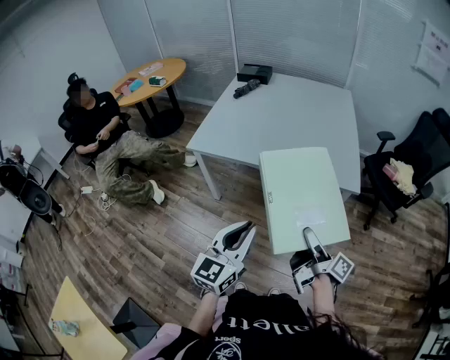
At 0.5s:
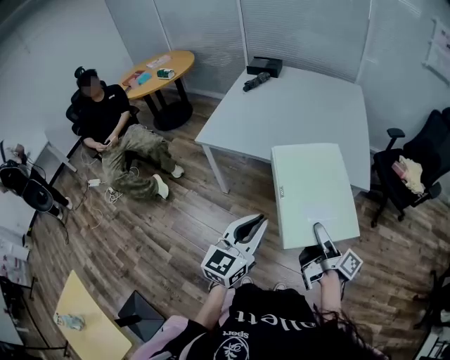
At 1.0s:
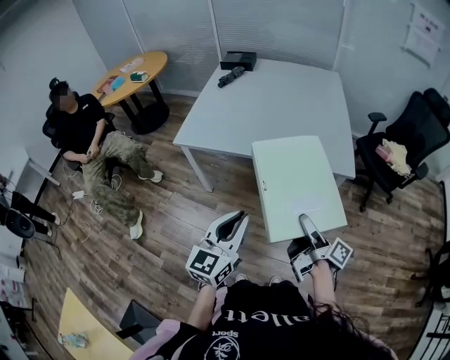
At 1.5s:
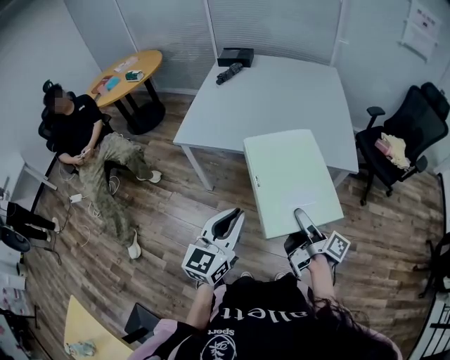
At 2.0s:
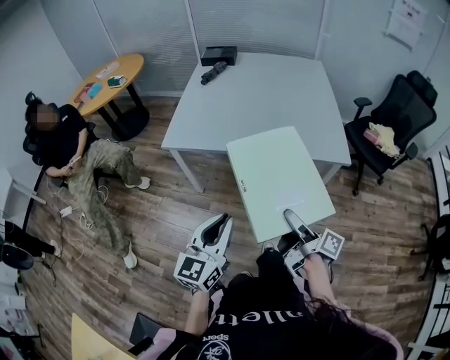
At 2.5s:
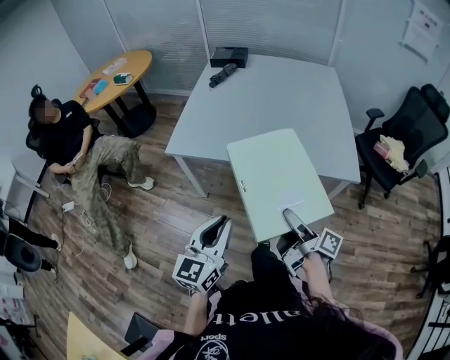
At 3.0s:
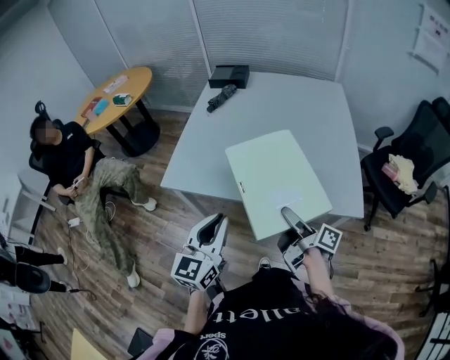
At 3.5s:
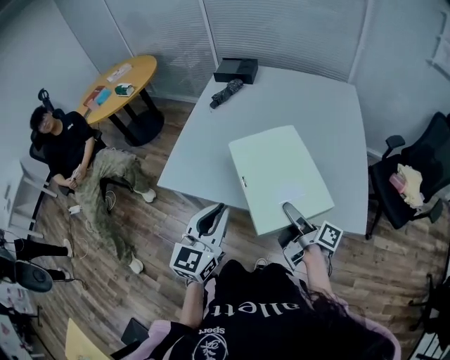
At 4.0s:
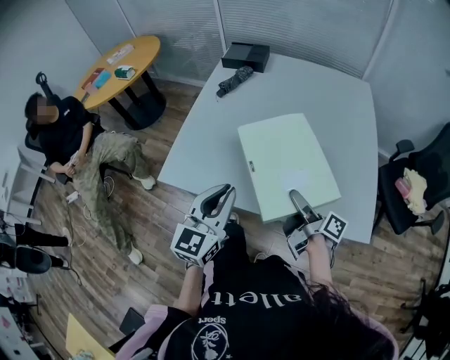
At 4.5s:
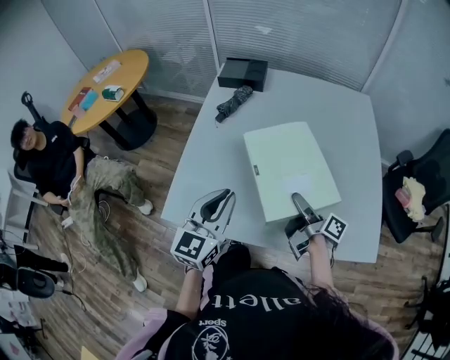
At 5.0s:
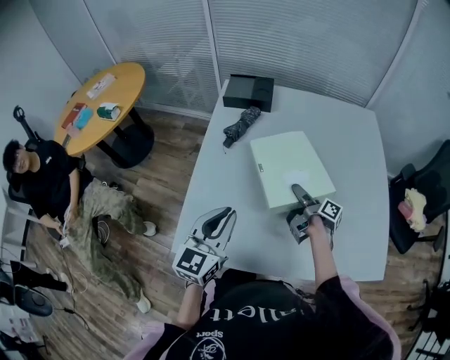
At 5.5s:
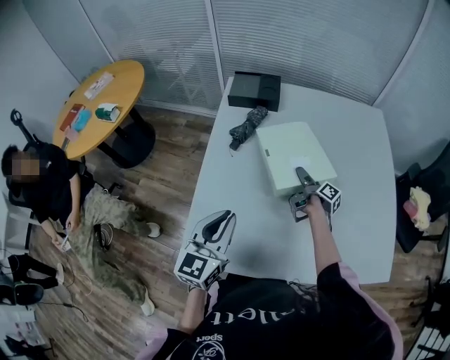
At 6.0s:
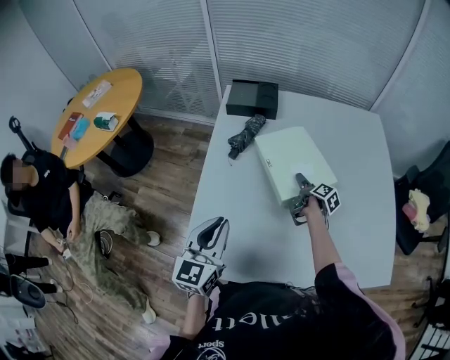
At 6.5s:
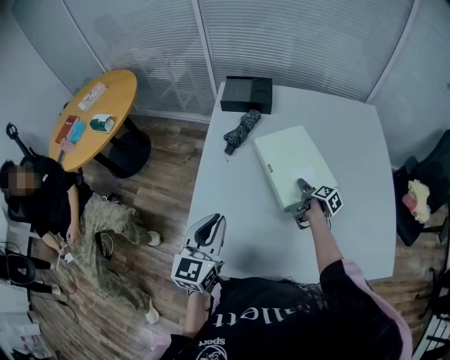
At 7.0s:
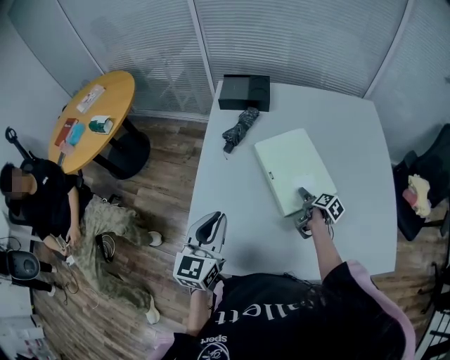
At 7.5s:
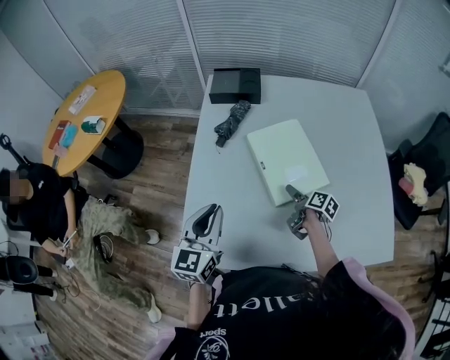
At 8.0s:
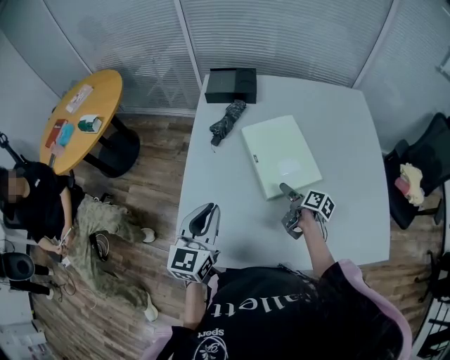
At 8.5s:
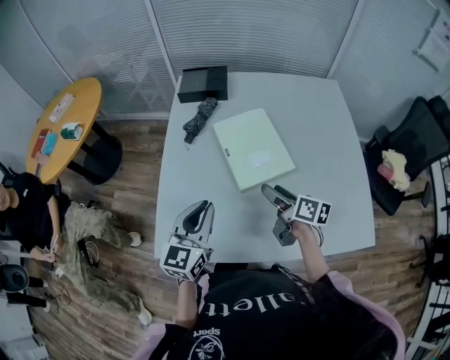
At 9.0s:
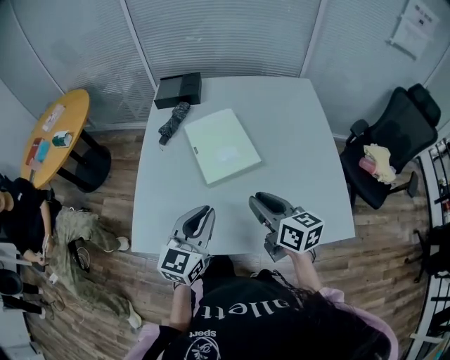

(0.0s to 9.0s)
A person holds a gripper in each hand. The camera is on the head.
0.0s - 2.0s: Both grippers move to the left, about 10 cm.
2.0s - 4.5s: The two grippers travel together, forward, about 50 cm.
4.5s - 7.0s: The left gripper heads to the left and forward, covering roughly 15 cm; the right gripper travels downward and forward by roughly 25 cm, and tips its fingers downward by roughly 40 degrees.
7.0s - 9.0s: The left gripper heads to the right and backward, covering approximately 20 cm. The right gripper heads upward and backward, covering some 30 cm, tilts its fingers about 30 degrees upward, and closes its fingers.

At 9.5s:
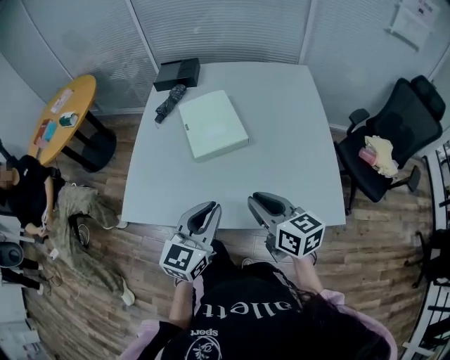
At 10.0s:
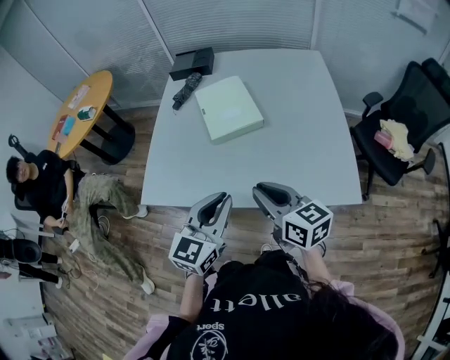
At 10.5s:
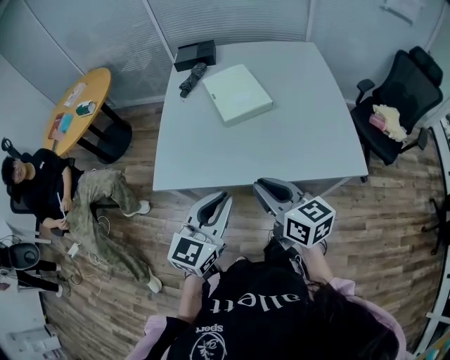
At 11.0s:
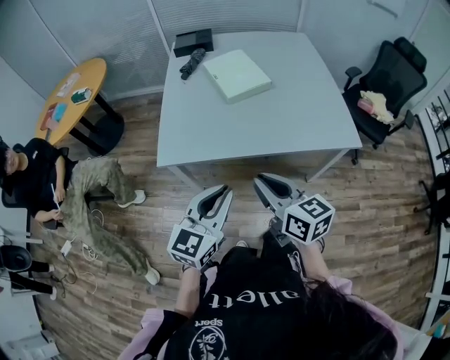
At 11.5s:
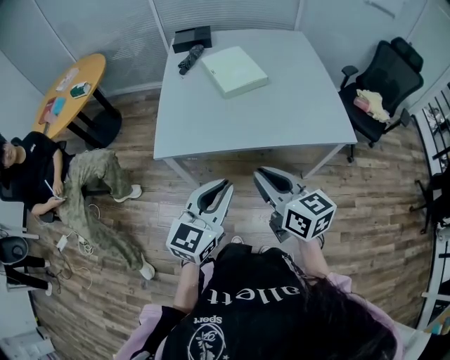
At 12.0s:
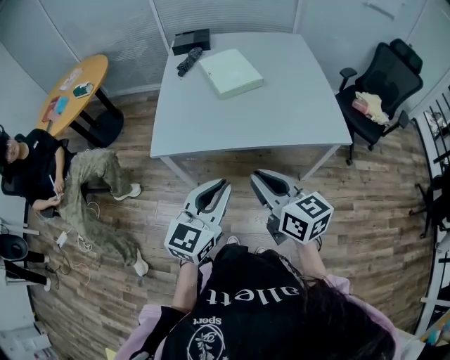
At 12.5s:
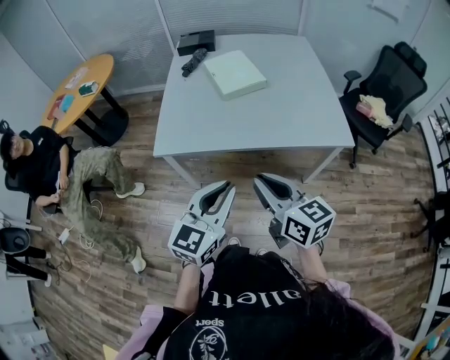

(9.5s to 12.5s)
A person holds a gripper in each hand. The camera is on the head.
9.5s - 11.0s: The two grippers go roughly 30 cm backward and to the left.
11.0s - 12.5s: The left gripper heads to the right, covering about 5 cm, while the right gripper heads backward, covering some 5 cm.

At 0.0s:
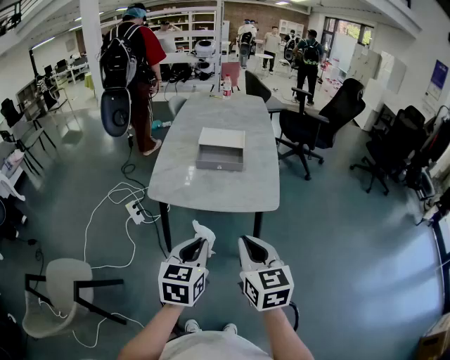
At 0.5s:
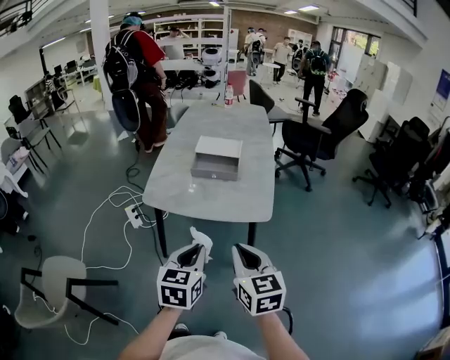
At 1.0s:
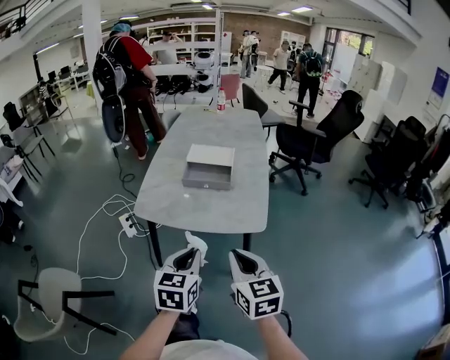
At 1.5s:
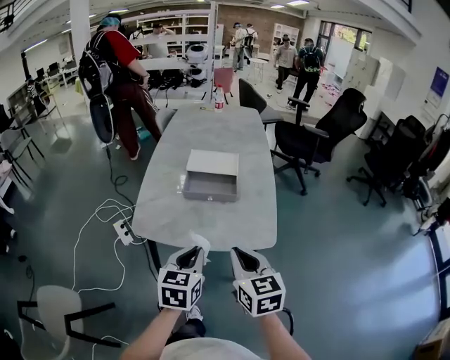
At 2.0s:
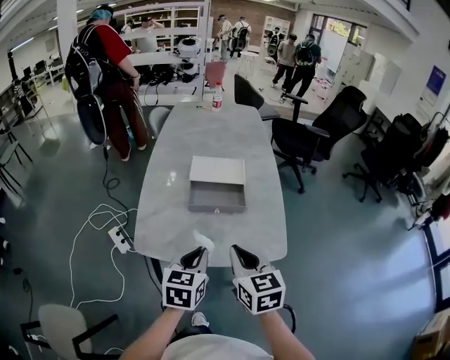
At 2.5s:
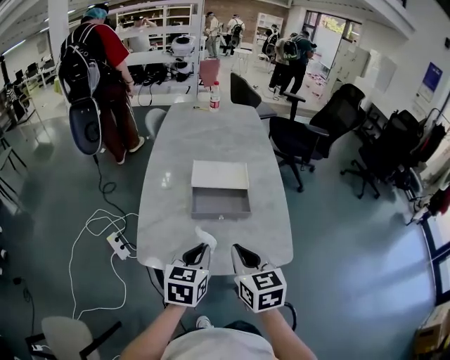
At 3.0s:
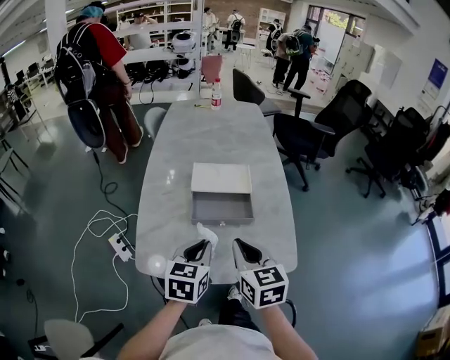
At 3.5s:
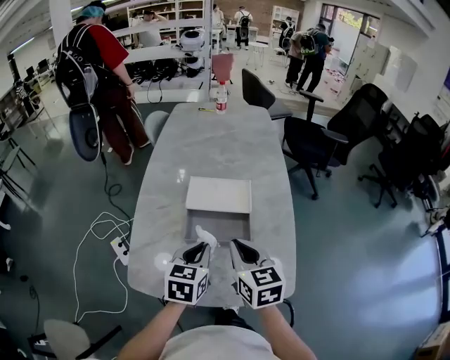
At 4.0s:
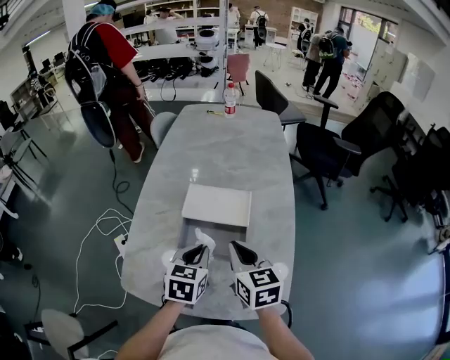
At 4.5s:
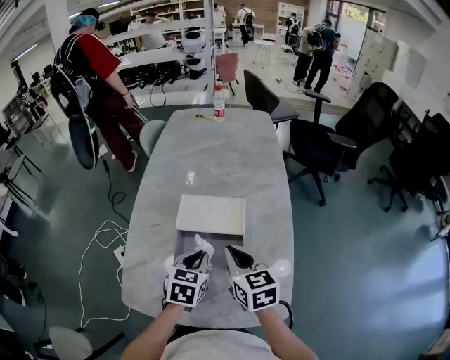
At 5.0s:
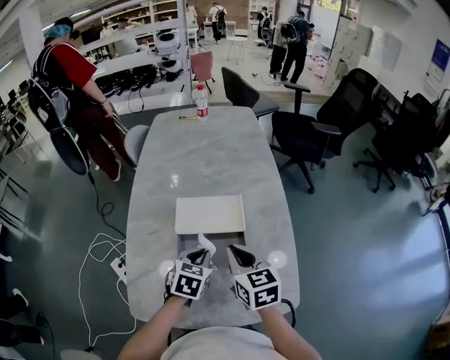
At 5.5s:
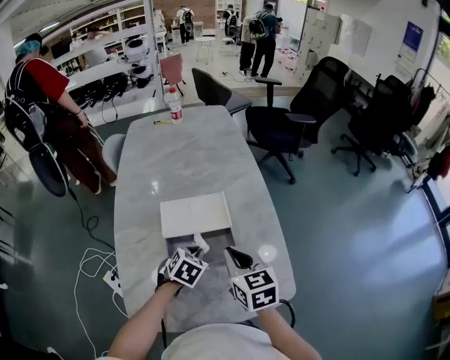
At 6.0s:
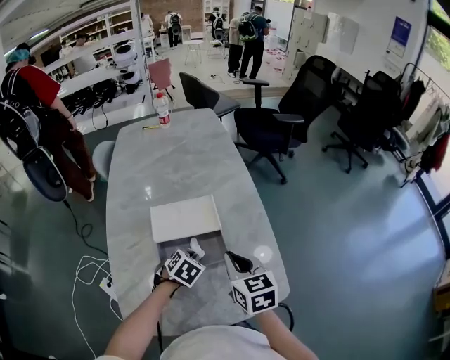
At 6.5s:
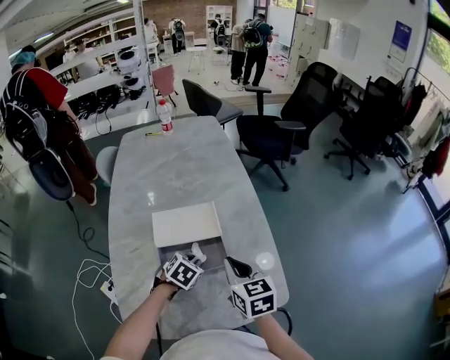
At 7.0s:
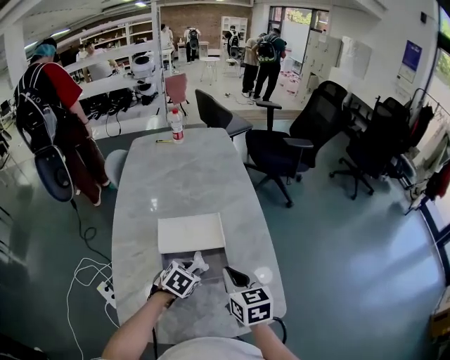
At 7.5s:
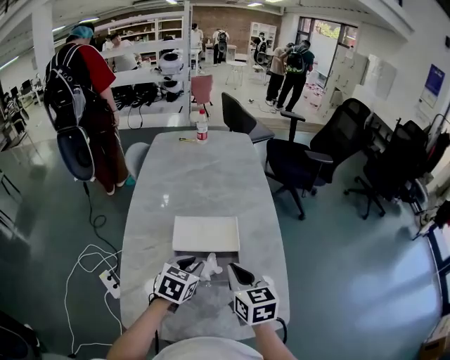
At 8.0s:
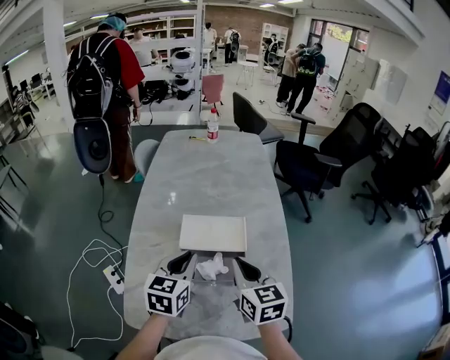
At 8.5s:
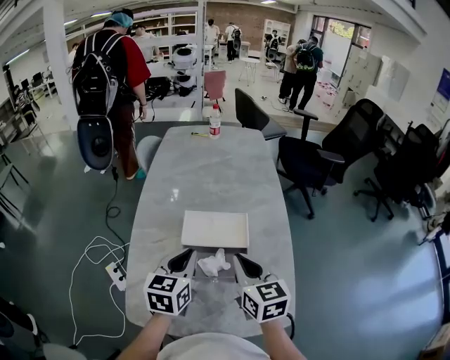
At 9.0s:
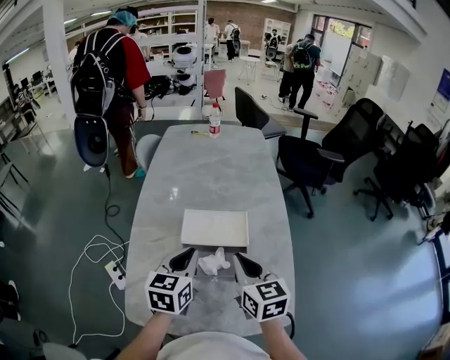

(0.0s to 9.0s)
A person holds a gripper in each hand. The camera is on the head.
0.0s - 2.0s: Both grippers travel together forward, some 25 cm.
2.0s - 4.5s: The grippers both shift forward by roughly 25 cm.
4.5s - 7.0s: The left gripper travels downward by approximately 5 cm, and changes its angle by approximately 40 degrees.
7.0s - 9.0s: The left gripper travels upward and to the left by about 15 cm, and points its fingers roughly 30 degrees further upward; the right gripper heads upward, covering approximately 5 cm.

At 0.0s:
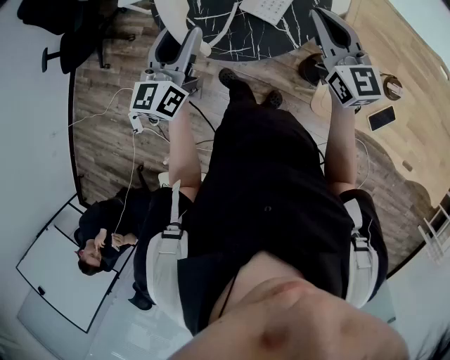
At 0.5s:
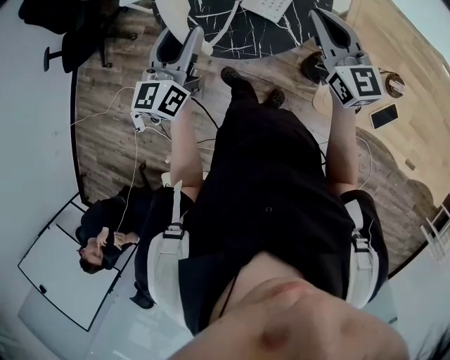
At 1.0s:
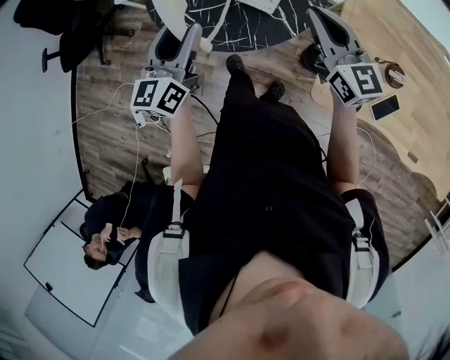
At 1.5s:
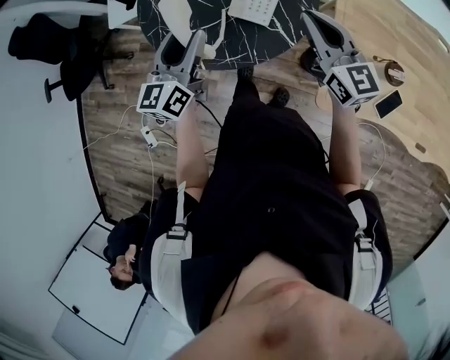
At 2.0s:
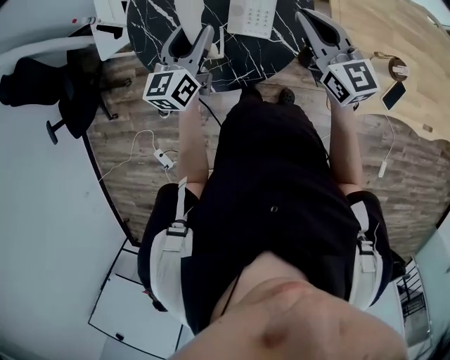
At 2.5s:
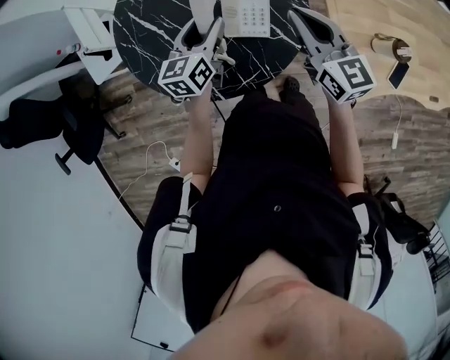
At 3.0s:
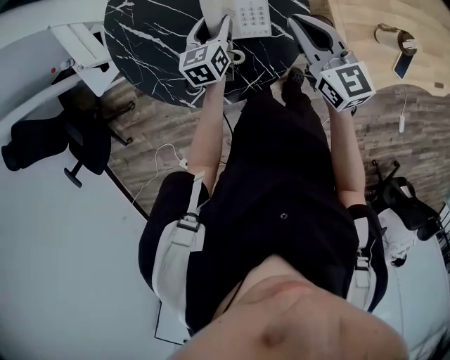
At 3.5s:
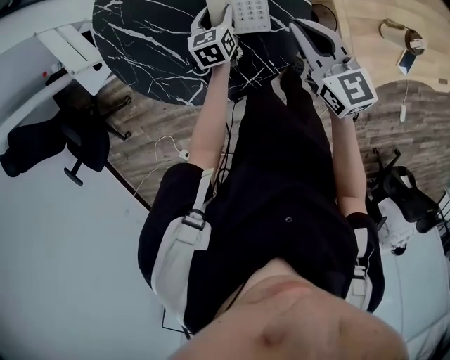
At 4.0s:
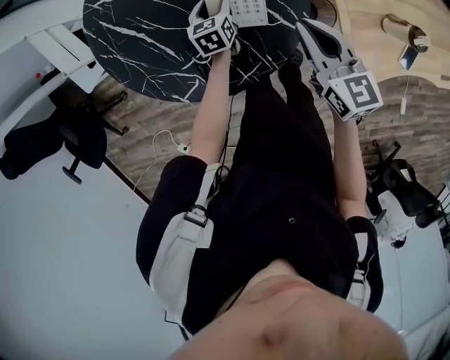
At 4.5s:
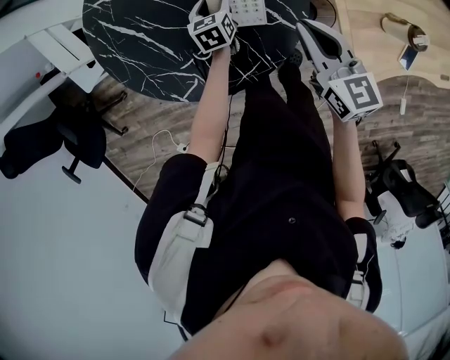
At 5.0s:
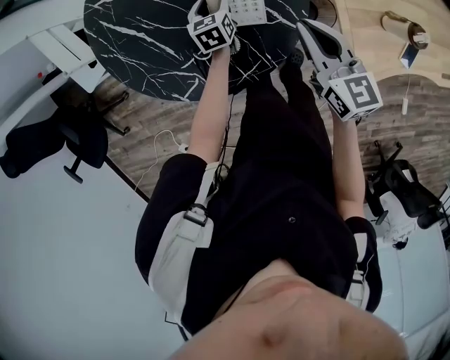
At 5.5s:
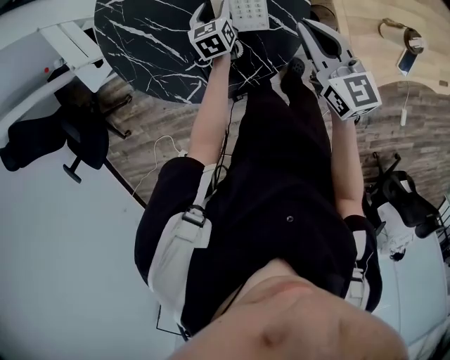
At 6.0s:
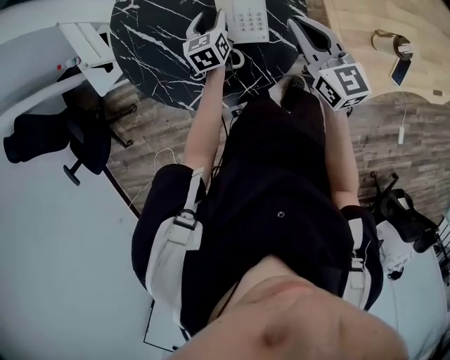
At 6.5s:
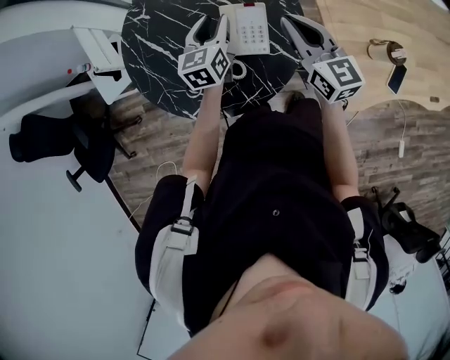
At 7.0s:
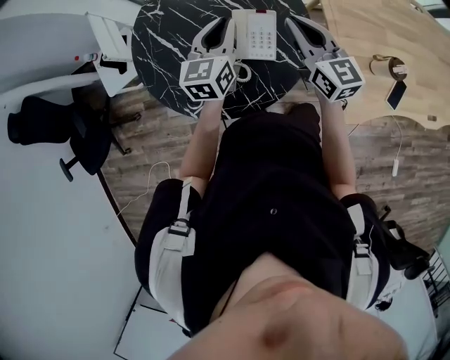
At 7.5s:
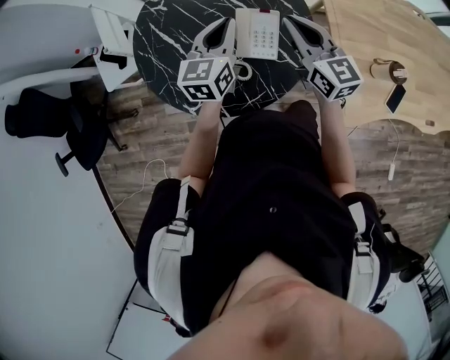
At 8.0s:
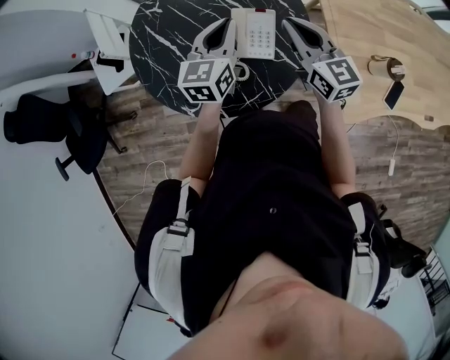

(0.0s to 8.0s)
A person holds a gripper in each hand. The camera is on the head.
0.0s - 2.0s: The left gripper goes approximately 15 cm forward and downward, and rotates about 20 degrees, while the right gripper goes about 5 cm forward.
2.0s - 4.0s: The right gripper is displaced downward by some 10 cm, and swivels about 20 degrees. The left gripper heads downward and forward, covering roughly 30 cm, and swivels some 30 degrees.
4.0s - 6.0s: The left gripper goes roughly 10 cm upward. The right gripper moves upward, about 5 cm.
6.0s - 8.0s: The right gripper changes place by roughly 5 cm. The left gripper goes about 20 cm upward, turns by roughly 20 degrees, and closes its fingers.
